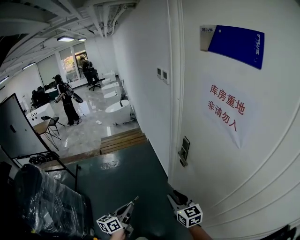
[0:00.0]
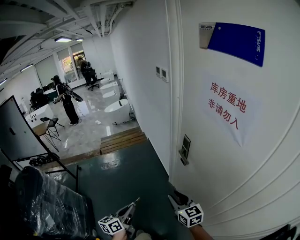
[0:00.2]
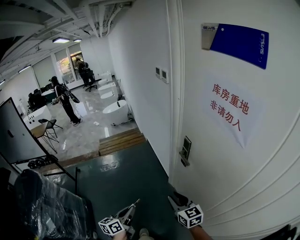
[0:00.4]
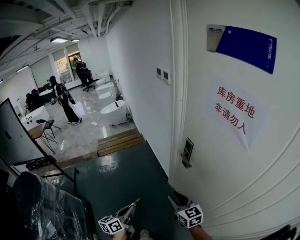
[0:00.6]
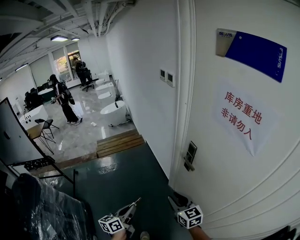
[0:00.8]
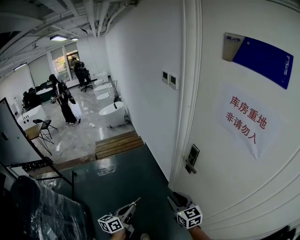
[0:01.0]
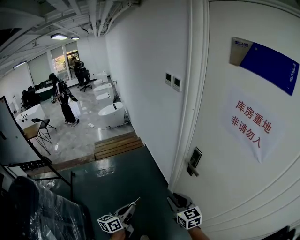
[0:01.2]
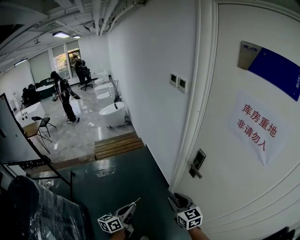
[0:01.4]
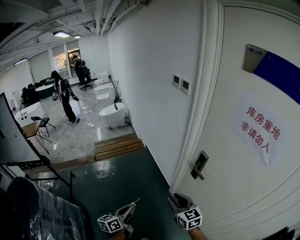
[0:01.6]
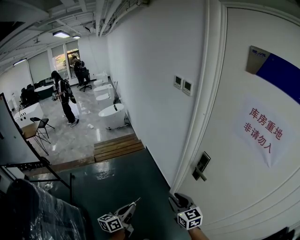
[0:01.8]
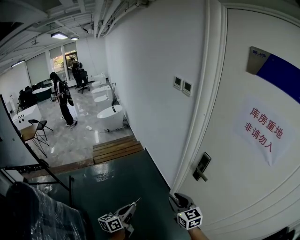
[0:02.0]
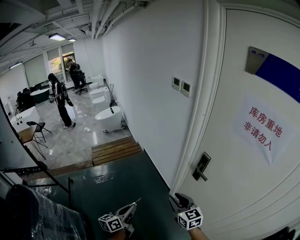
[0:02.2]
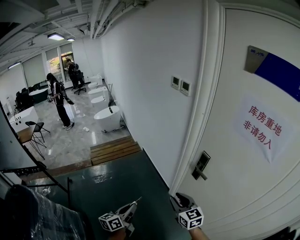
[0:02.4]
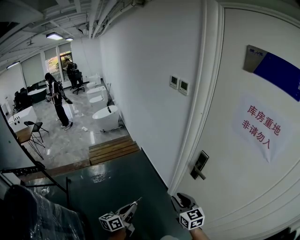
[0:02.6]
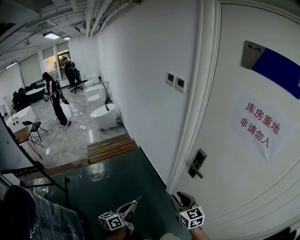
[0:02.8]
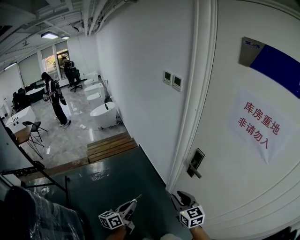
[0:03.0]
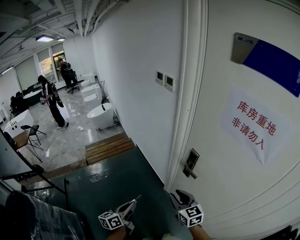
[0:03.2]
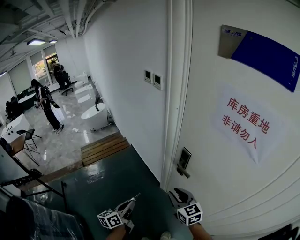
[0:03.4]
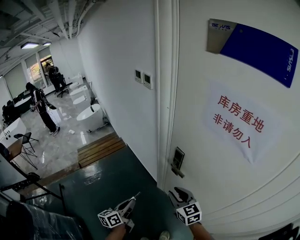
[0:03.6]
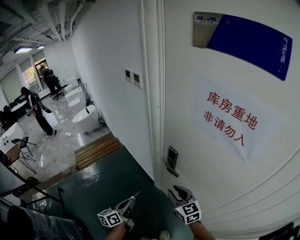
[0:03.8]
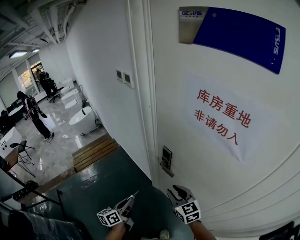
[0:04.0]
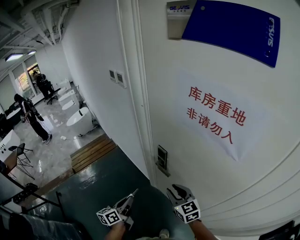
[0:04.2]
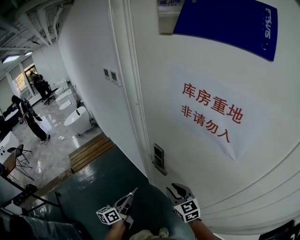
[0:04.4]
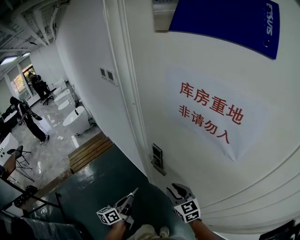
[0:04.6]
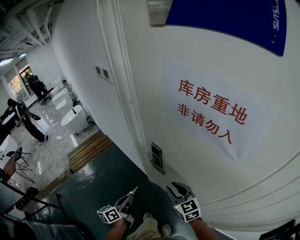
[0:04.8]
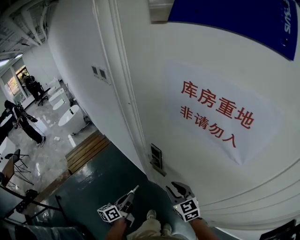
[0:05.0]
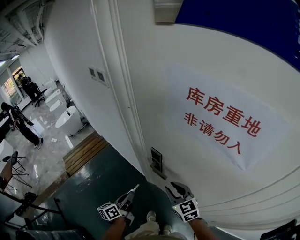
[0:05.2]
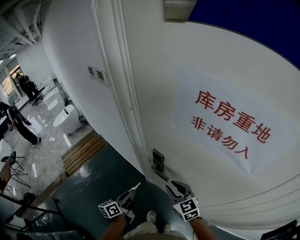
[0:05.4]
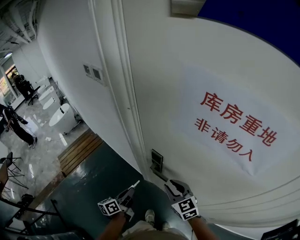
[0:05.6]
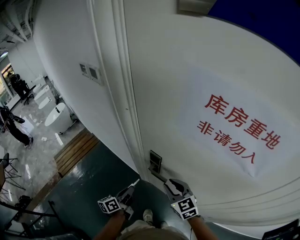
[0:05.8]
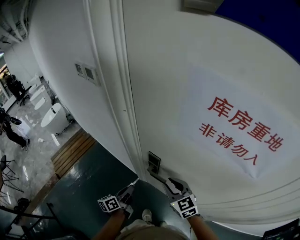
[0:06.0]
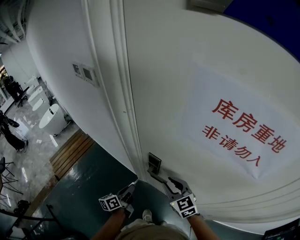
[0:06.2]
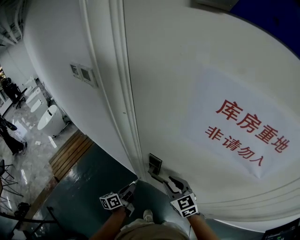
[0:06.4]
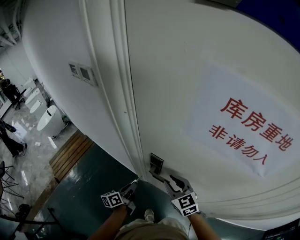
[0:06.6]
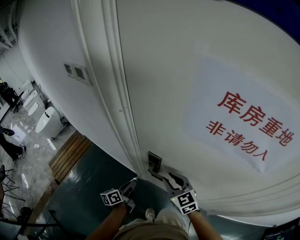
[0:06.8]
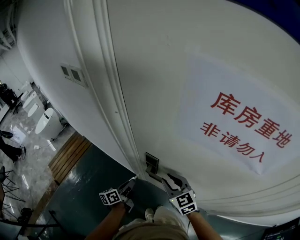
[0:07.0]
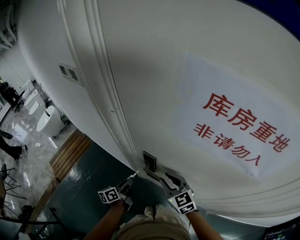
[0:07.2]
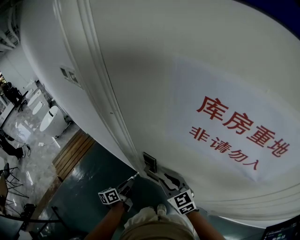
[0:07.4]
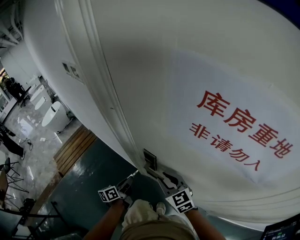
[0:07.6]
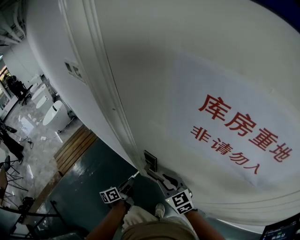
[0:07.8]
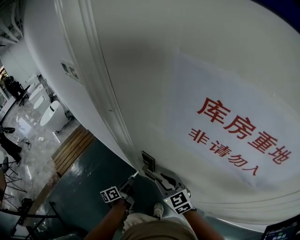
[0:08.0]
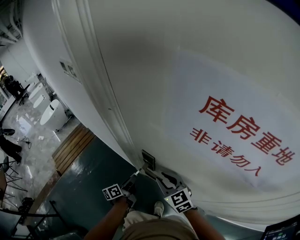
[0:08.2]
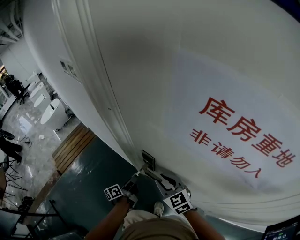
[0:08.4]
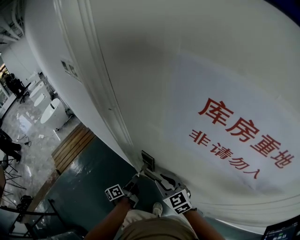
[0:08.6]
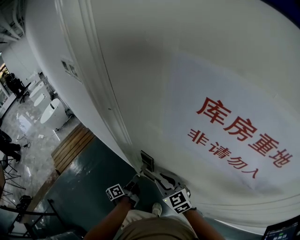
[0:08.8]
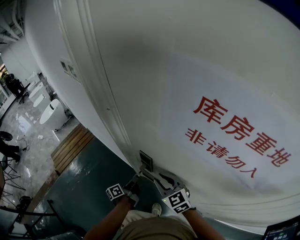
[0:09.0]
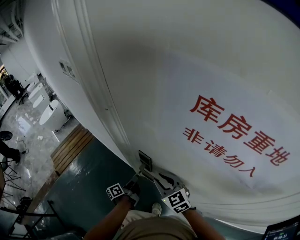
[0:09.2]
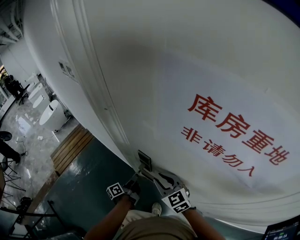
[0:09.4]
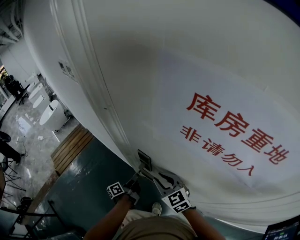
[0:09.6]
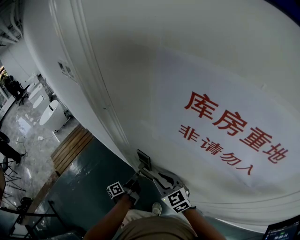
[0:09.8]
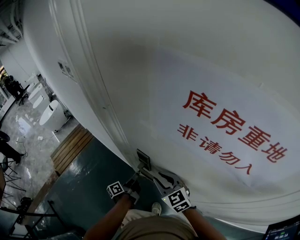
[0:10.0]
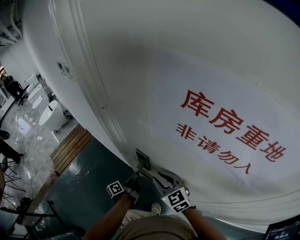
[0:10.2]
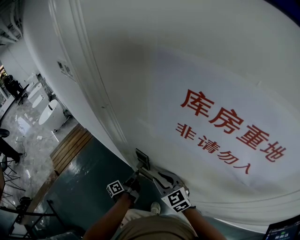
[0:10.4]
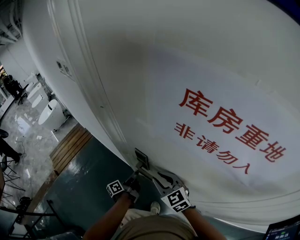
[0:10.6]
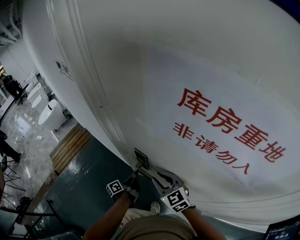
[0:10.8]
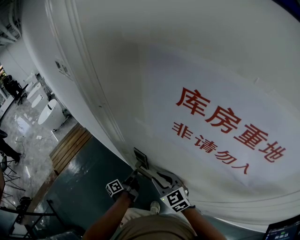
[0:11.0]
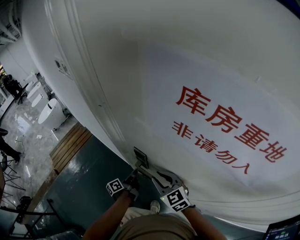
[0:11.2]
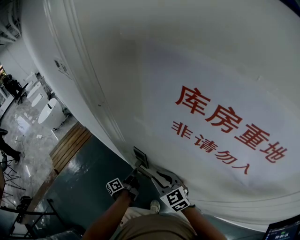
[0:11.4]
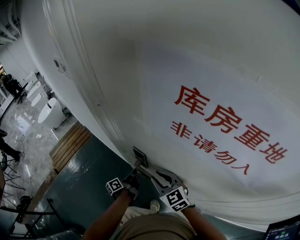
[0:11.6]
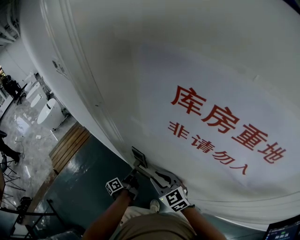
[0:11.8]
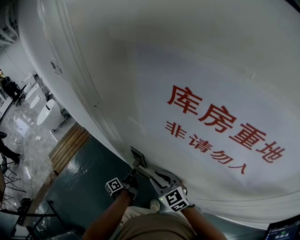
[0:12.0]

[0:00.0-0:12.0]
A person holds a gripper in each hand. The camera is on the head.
0:00.0 to 0:01.6: The left gripper moves forward and to the left, approximately 20 cm. Meanwhile the right gripper travels to the left and forward by approximately 15 cm.
0:01.6 to 0:03.0: The left gripper shifts by about 5 cm.
0:03.0 to 0:04.4: The left gripper is displaced to the right and forward by approximately 20 cm. Meanwhile the right gripper heads to the right, covering about 20 cm.
0:04.4 to 0:06.0: The left gripper heads forward and downward, covering approximately 15 cm; the right gripper goes about 10 cm forward.
0:06.0 to 0:07.6: The left gripper ends up roughly 5 cm from where it was.
0:07.6 to 0:09.0: The left gripper ends up approximately 5 cm from where it was, and turns by approximately 20 degrees.
0:09.0 to 0:12.0: The grippers move only a little.

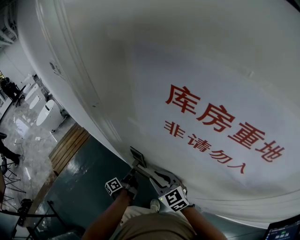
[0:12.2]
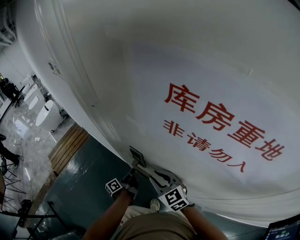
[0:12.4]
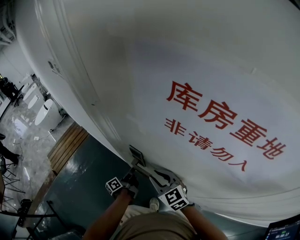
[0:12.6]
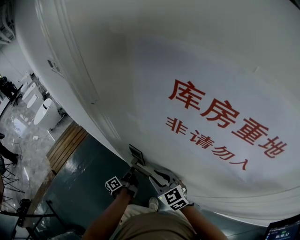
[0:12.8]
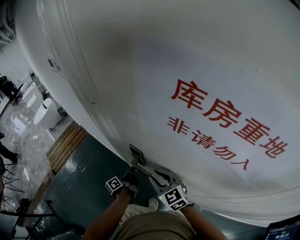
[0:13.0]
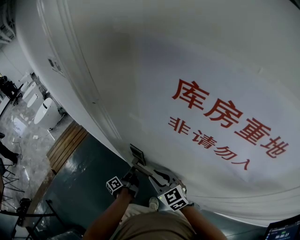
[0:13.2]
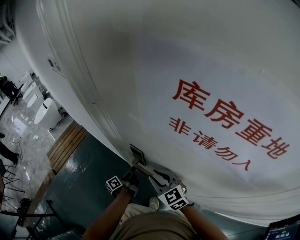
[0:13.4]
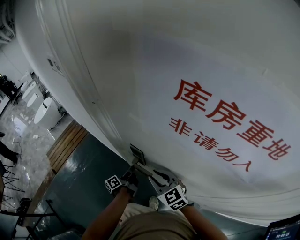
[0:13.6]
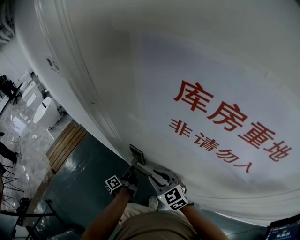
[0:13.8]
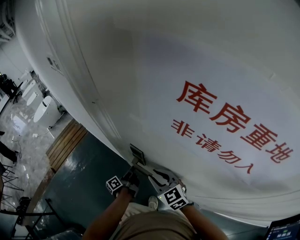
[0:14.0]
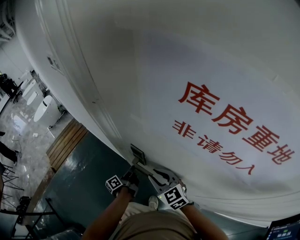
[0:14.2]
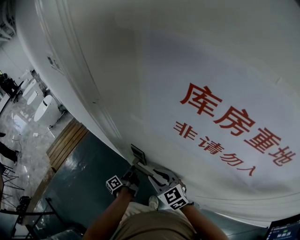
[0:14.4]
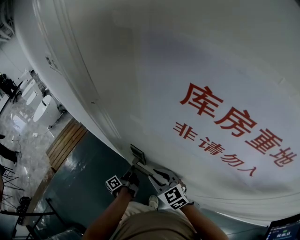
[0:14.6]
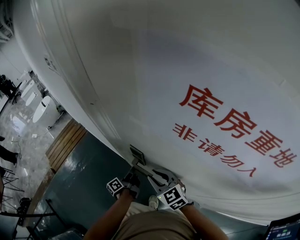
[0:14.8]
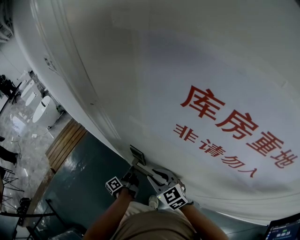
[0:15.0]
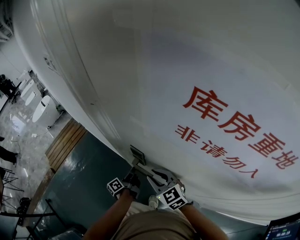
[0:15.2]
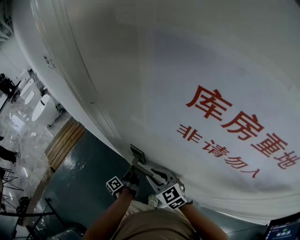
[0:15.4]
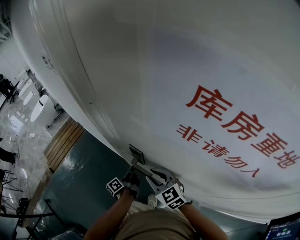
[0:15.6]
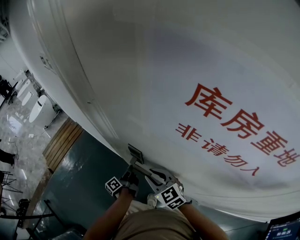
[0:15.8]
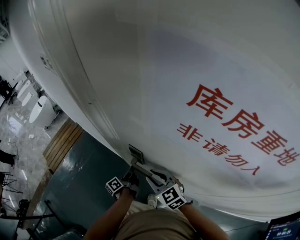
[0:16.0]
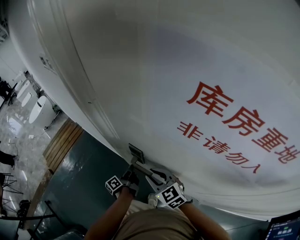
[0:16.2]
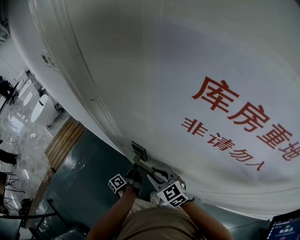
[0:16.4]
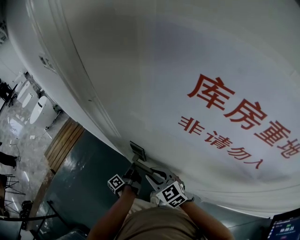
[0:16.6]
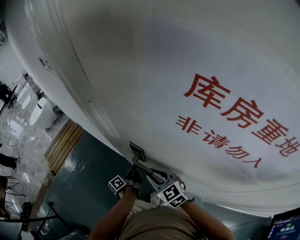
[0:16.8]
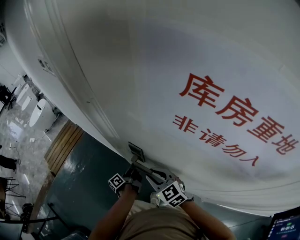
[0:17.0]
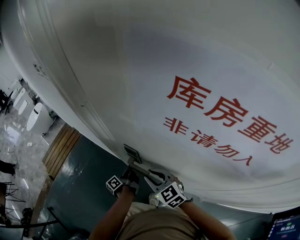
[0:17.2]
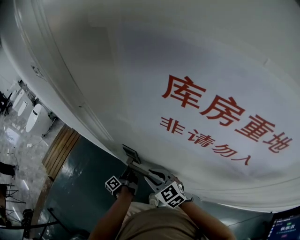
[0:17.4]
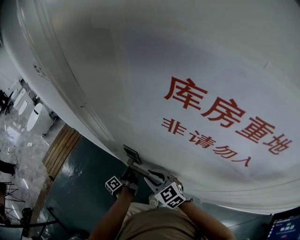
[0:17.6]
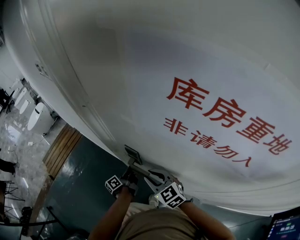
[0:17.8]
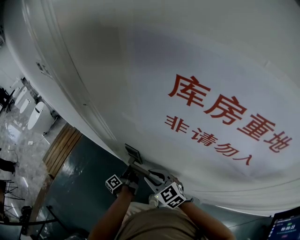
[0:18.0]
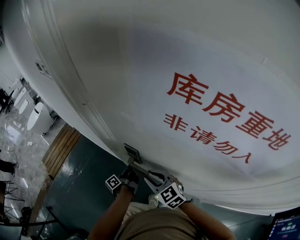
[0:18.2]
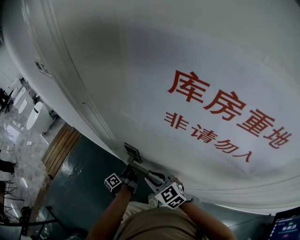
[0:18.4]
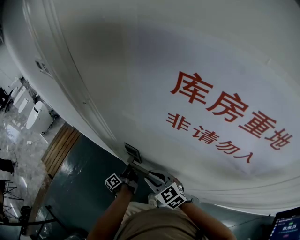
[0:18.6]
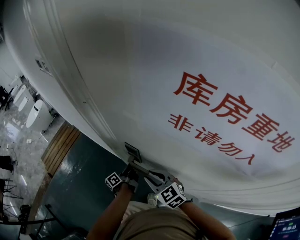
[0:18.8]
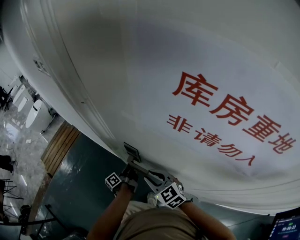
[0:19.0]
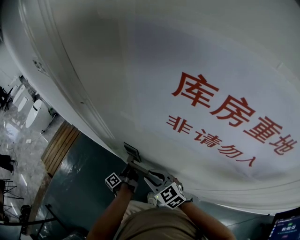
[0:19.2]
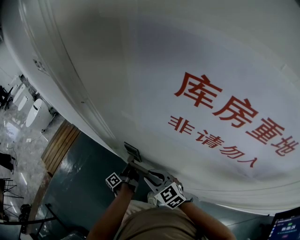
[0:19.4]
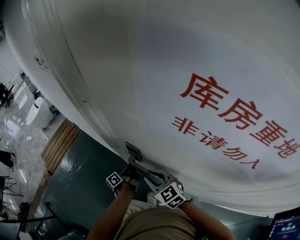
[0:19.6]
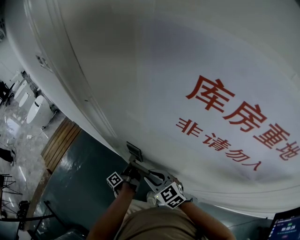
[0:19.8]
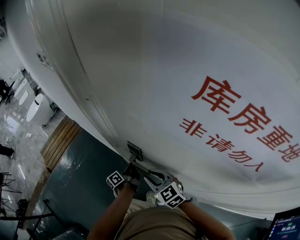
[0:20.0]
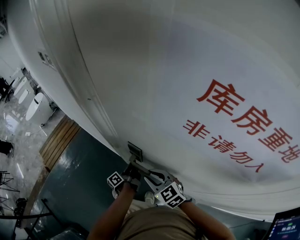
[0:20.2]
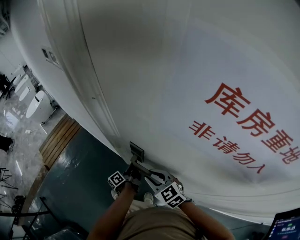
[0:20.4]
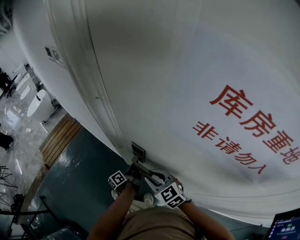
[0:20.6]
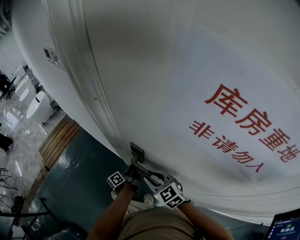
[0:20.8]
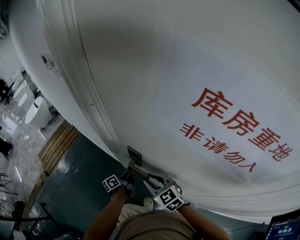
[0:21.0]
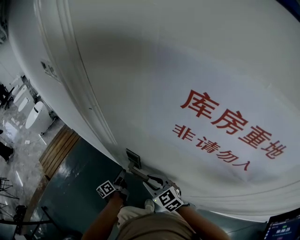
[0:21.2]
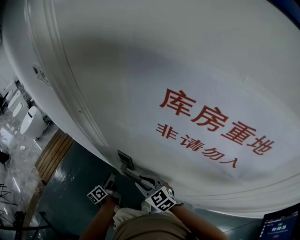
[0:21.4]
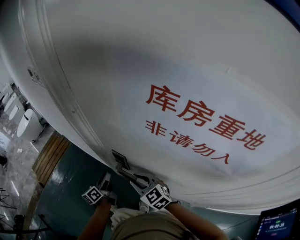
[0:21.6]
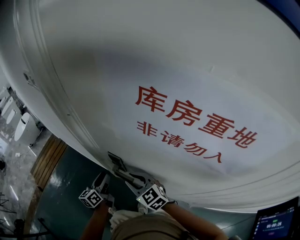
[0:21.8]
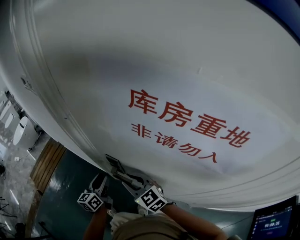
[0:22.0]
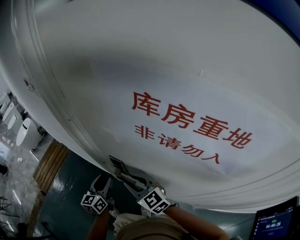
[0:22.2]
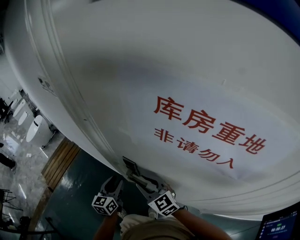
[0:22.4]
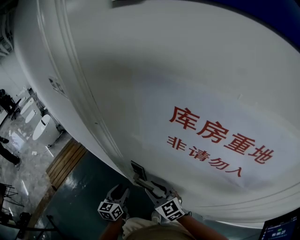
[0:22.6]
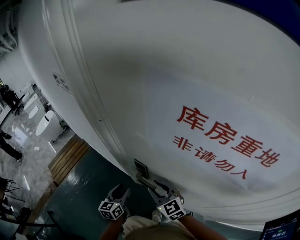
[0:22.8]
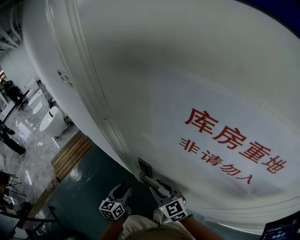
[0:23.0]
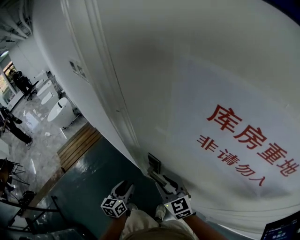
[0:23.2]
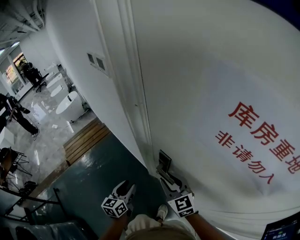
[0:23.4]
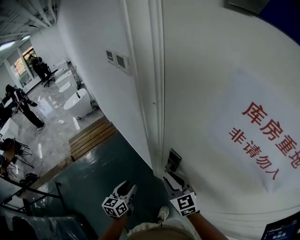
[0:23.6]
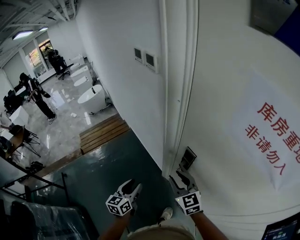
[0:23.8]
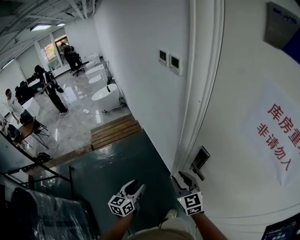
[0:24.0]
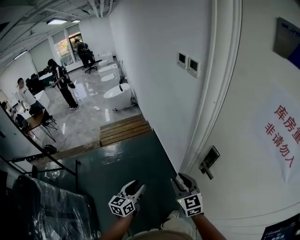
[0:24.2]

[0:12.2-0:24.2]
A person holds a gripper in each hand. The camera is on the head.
0:12.2 to 0:13.8: Neither gripper changes place.
0:13.8 to 0:19.8: The grippers stay close to where they were, moving slightly.
0:19.8 to 0:21.2: The left gripper travels to the left by some 5 cm, turns by some 20 degrees, and opens up.
0:21.2 to 0:22.6: The left gripper is displaced upward by roughly 10 cm, and rotates around the line of its fingers by some 50 degrees, clockwise from behind.
0:22.6 to 0:24.2: The two grippers go roughly 25 cm to the left and backward. The left gripper rotates roughly 30 degrees. Meanwhile the right gripper turns by approximately 20 degrees.
